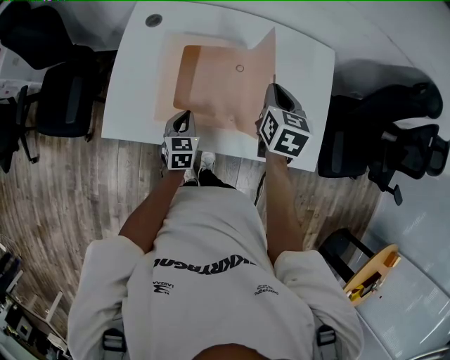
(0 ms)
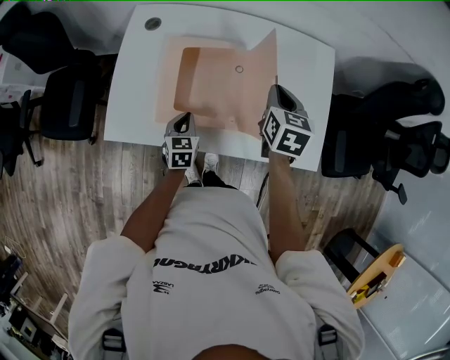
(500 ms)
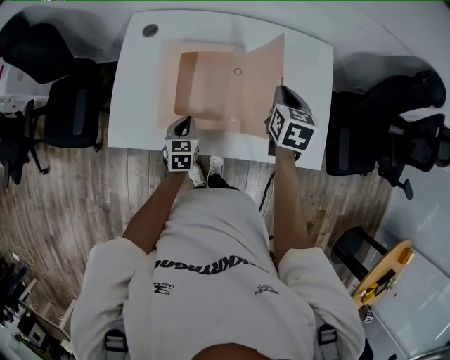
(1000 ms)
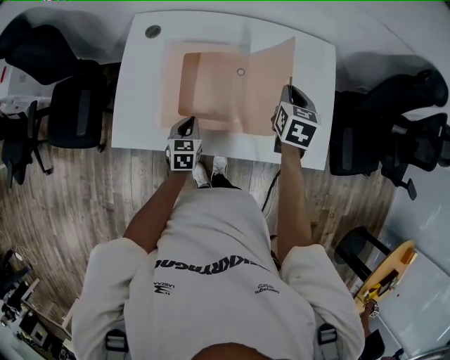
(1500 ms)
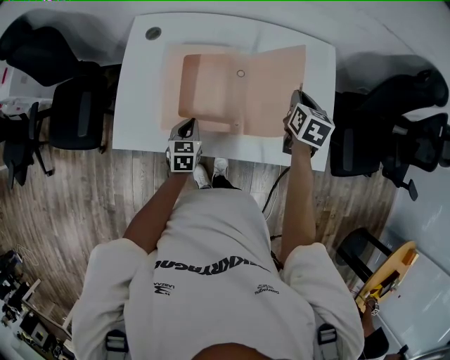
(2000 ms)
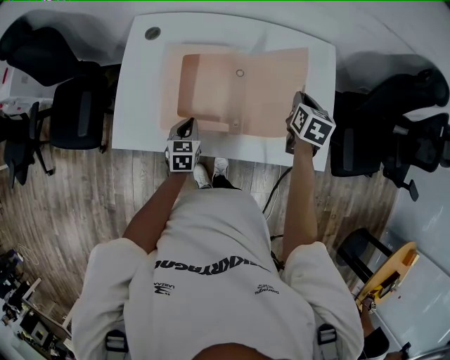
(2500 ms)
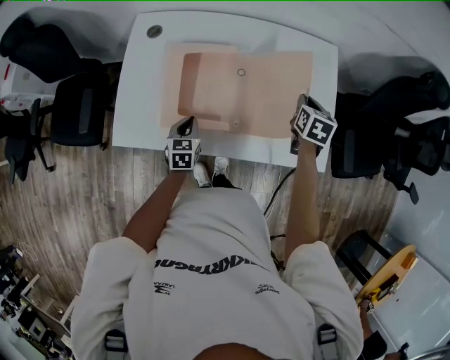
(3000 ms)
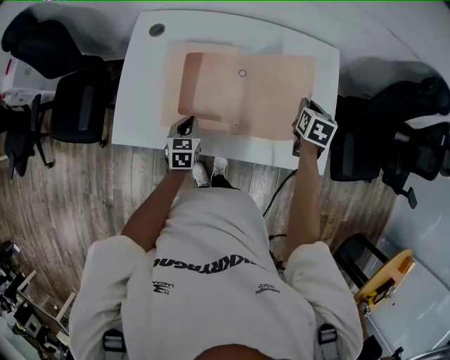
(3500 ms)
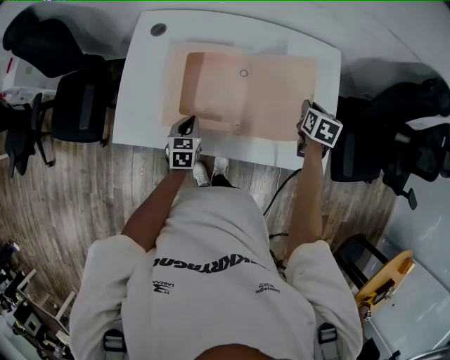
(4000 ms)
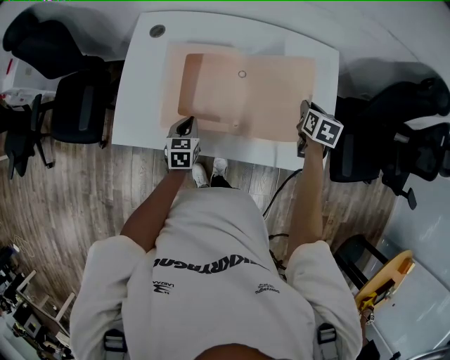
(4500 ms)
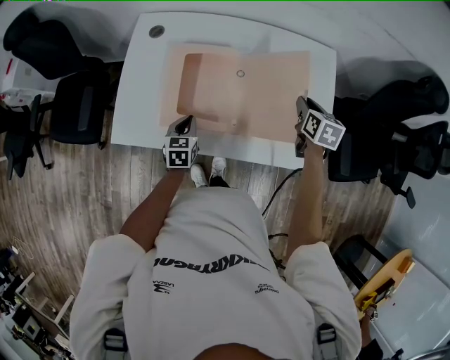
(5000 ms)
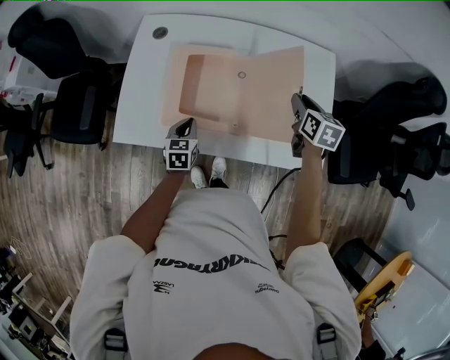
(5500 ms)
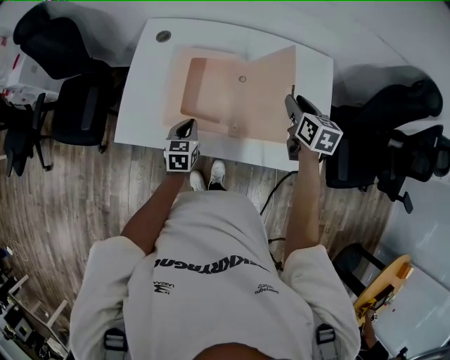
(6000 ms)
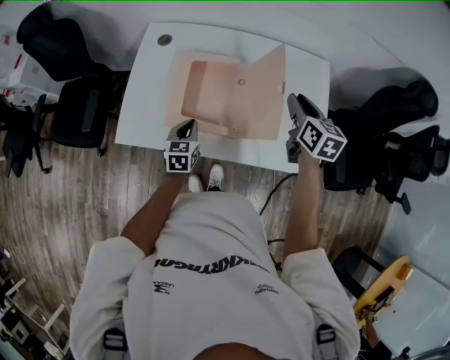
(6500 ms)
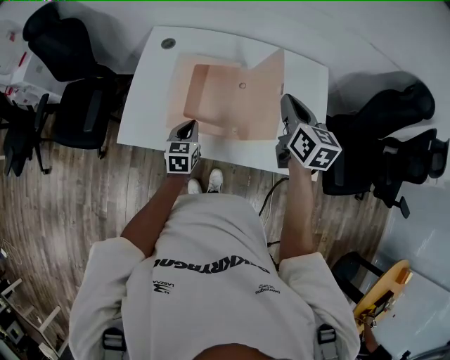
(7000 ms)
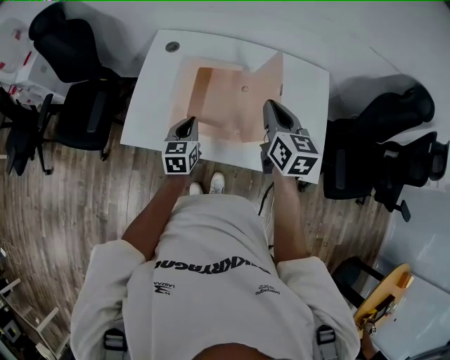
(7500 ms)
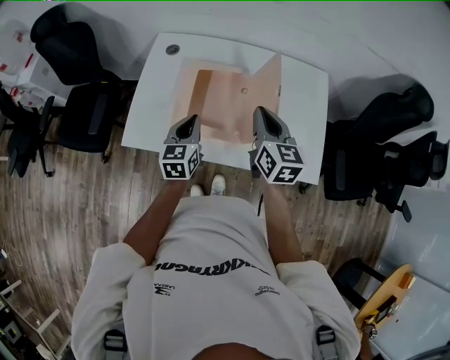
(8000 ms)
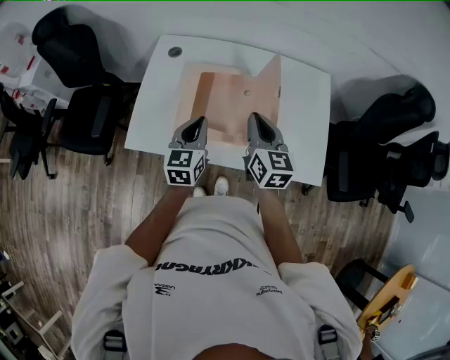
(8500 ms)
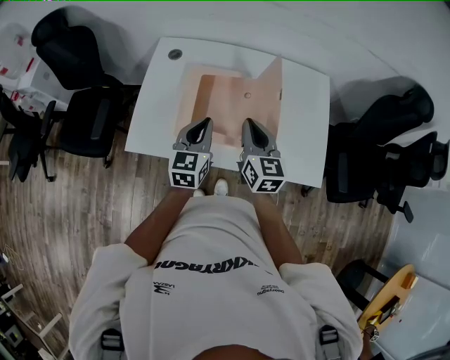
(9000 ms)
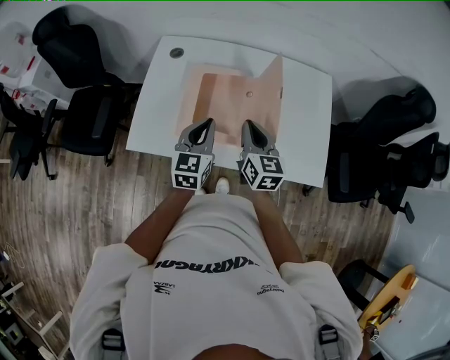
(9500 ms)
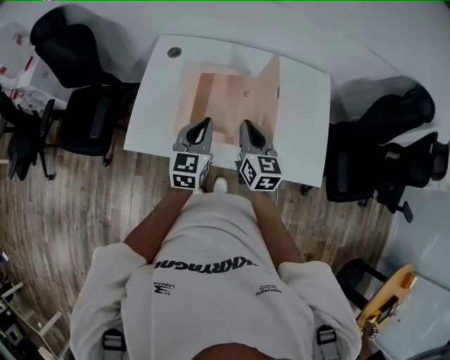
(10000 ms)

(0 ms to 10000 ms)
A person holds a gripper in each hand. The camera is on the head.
0 ms - 2000 ms: The right gripper is displaced to the right by roughly 10 cm.
2000 ms - 4000 ms: The right gripper moves to the right and downward, about 10 cm.
4000 ms - 6000 ms: The right gripper is displaced upward and to the left by approximately 10 cm, and rotates about 20 degrees.
6000 ms - 8000 ms: The left gripper heads upward, covering about 15 cm. Meanwhile the right gripper moves to the left, upward and backward, approximately 15 cm, and closes.
8000 ms - 10000 ms: The right gripper travels downward by approximately 5 cm.

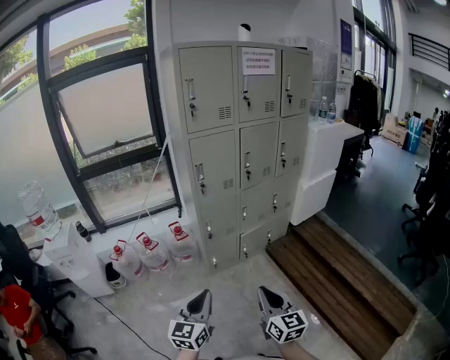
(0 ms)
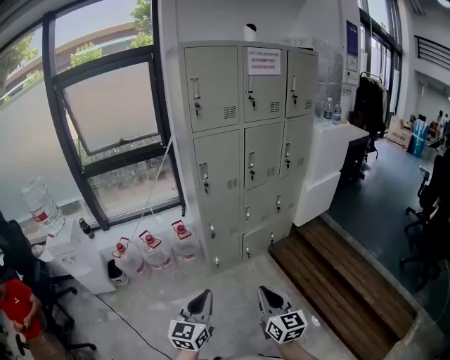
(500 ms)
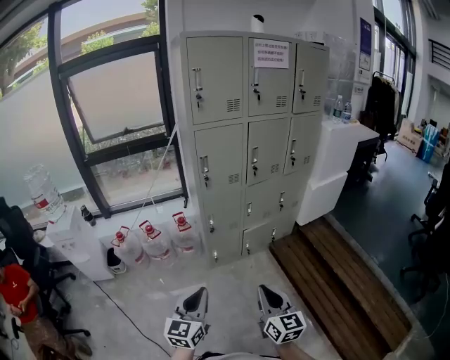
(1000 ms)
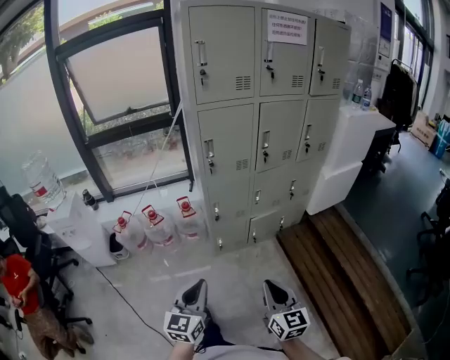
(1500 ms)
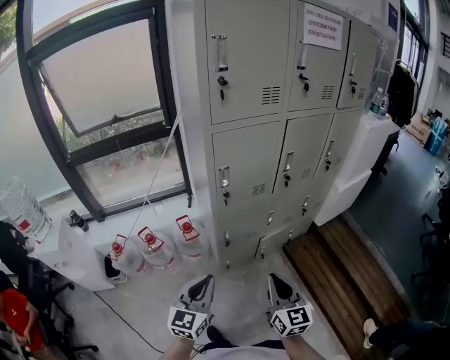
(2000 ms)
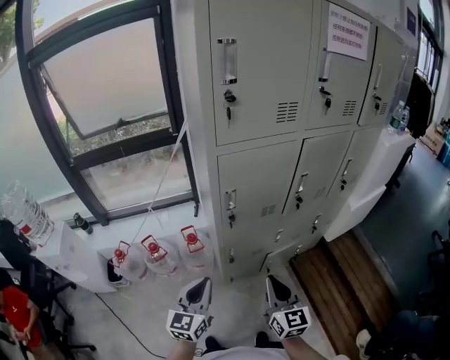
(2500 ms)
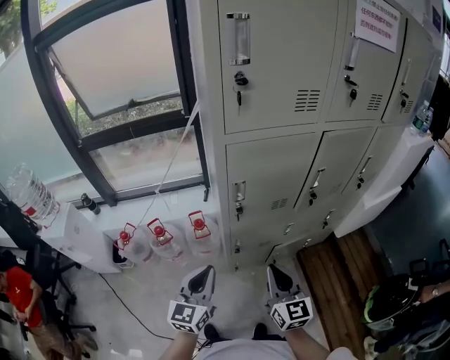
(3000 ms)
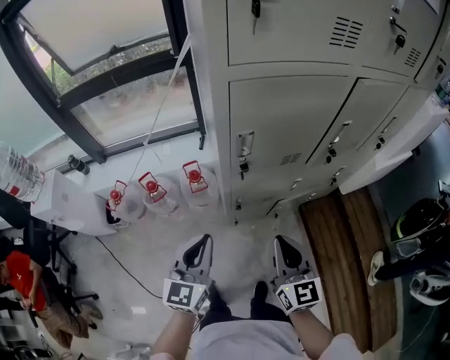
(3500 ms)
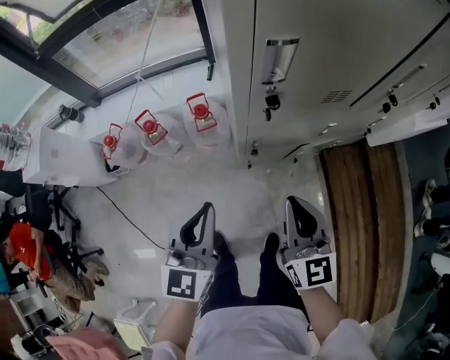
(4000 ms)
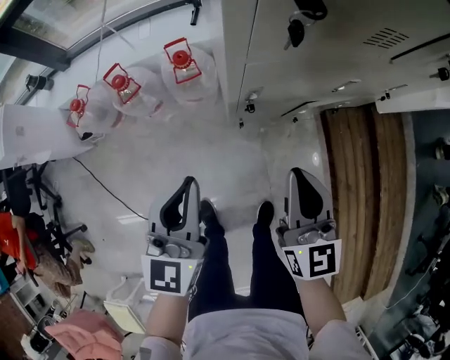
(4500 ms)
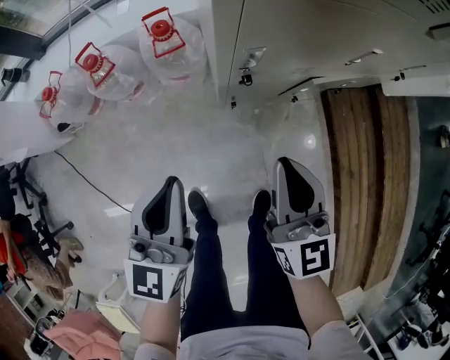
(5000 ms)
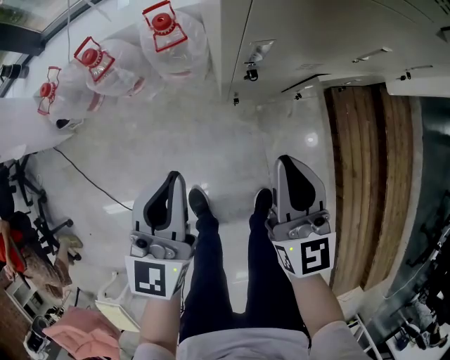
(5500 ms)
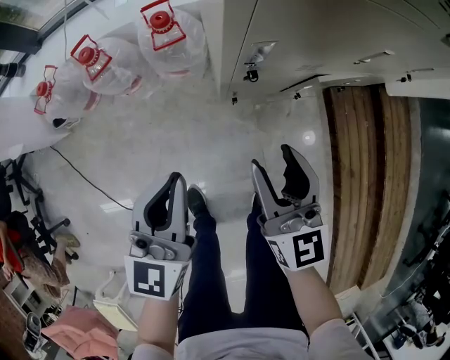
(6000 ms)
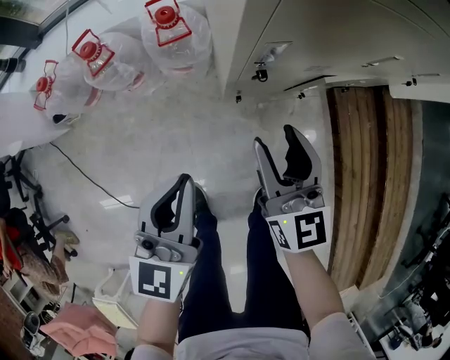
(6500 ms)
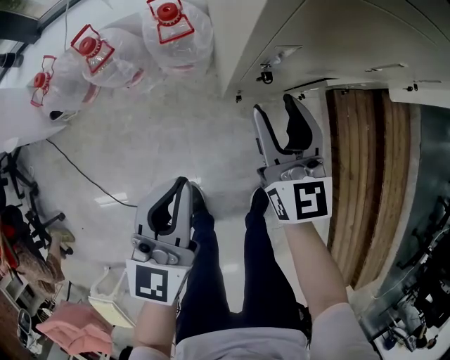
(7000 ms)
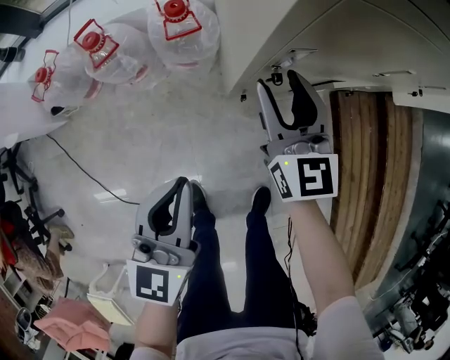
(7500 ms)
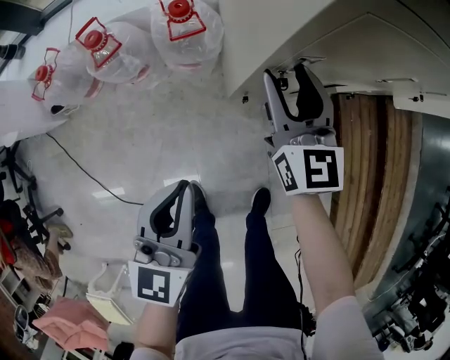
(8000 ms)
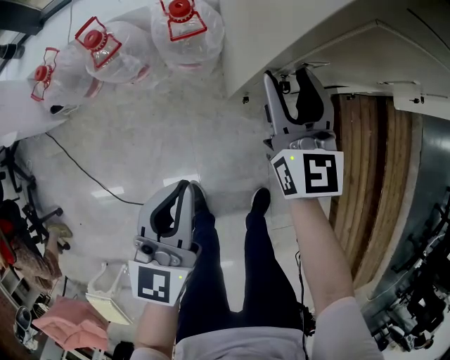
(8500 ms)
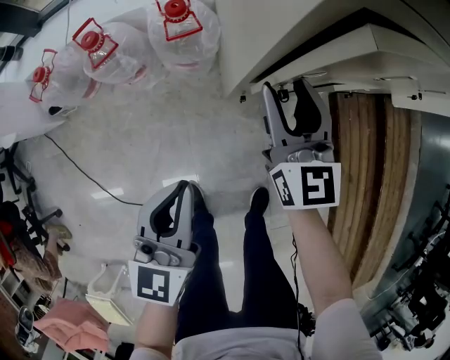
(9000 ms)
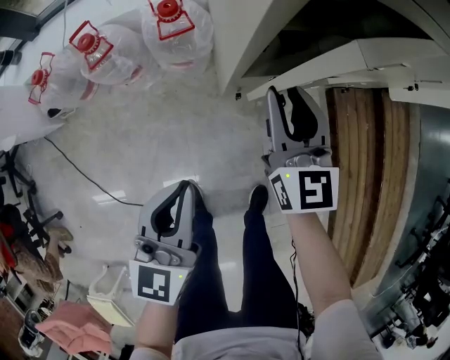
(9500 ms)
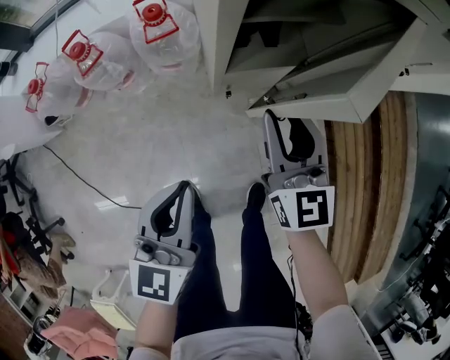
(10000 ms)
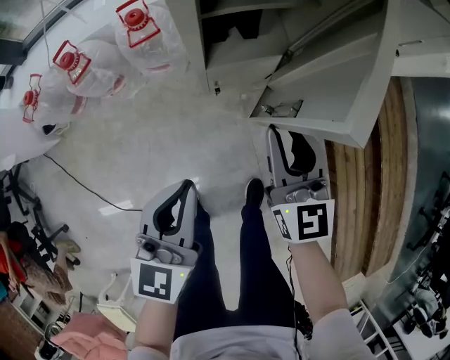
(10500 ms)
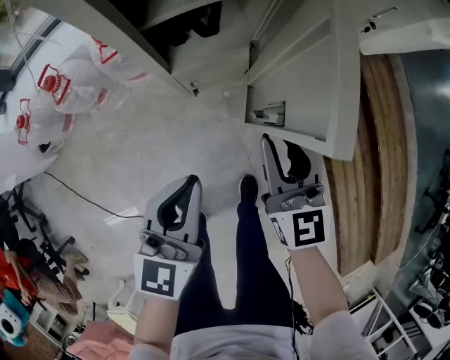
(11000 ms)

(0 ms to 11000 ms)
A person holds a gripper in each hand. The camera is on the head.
0 ms - 2000 ms: Both grippers move forward, approximately 30 cm.
2000 ms - 3500 ms: Both grippers travel together forward, about 15 cm.
3500 ms - 5500 ms: The grippers both shift downward by roughly 30 cm.
5500 ms - 7500 ms: The right gripper shifts some 15 cm forward, and opens.
7500 ms - 9000 ms: There are only small adjustments of the grippers.
9000 ms - 11000 ms: The left gripper shifts approximately 20 cm to the right. The right gripper heads to the right and backward, covering about 25 cm.

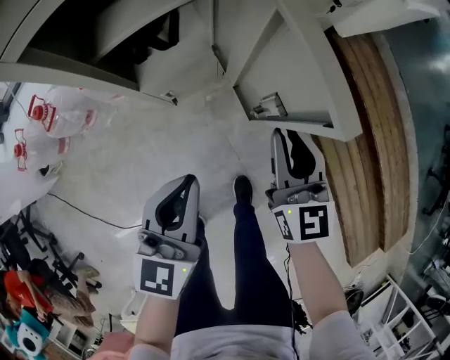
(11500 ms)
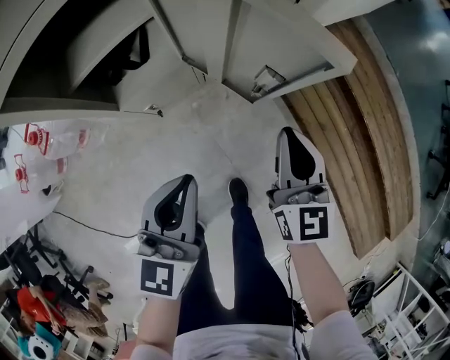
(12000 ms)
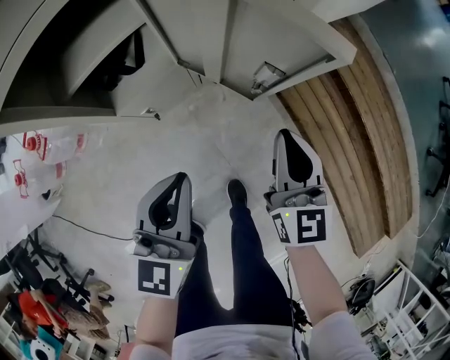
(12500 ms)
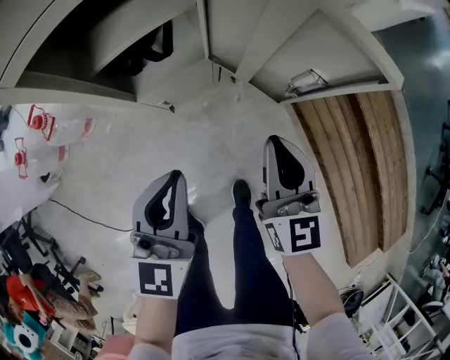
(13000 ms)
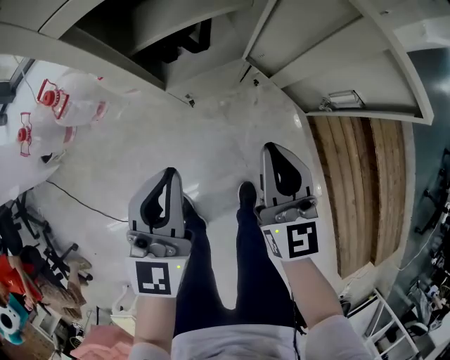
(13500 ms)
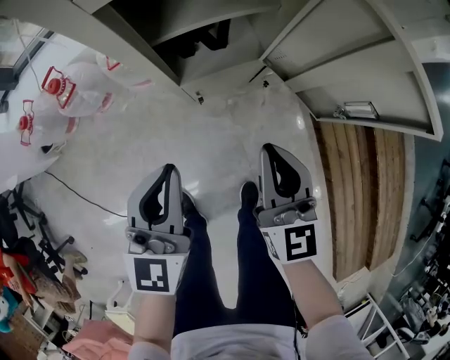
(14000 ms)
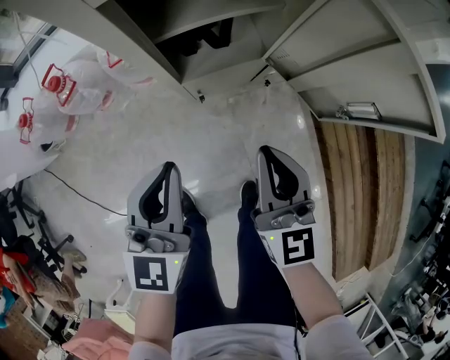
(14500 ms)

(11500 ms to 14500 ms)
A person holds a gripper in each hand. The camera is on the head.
11500 ms - 13000 ms: The right gripper travels to the right and back again, roughly 10 cm each way.
13000 ms - 14500 ms: The grippers both shift to the left by about 15 cm.

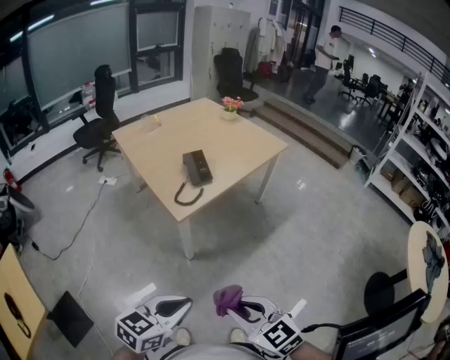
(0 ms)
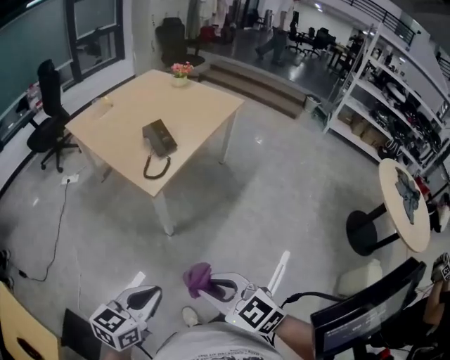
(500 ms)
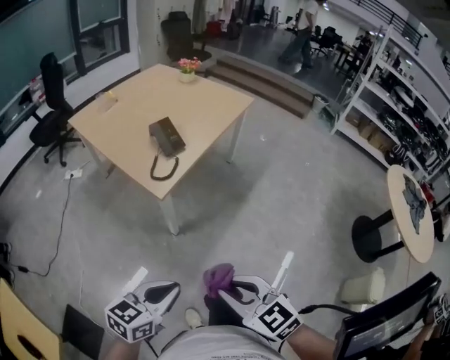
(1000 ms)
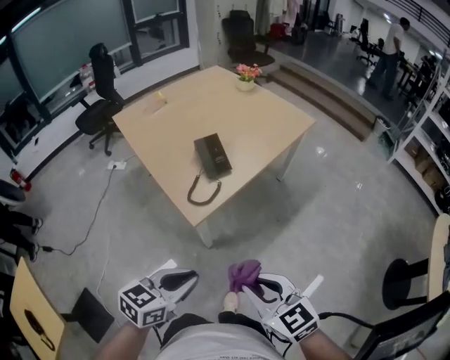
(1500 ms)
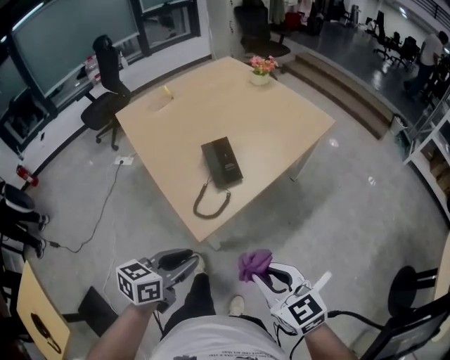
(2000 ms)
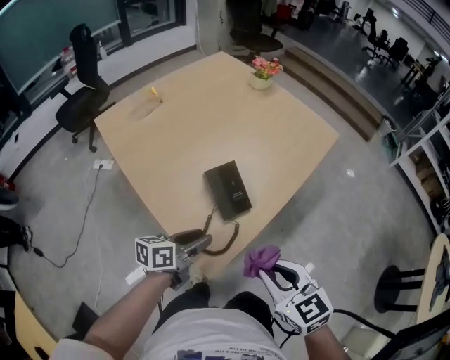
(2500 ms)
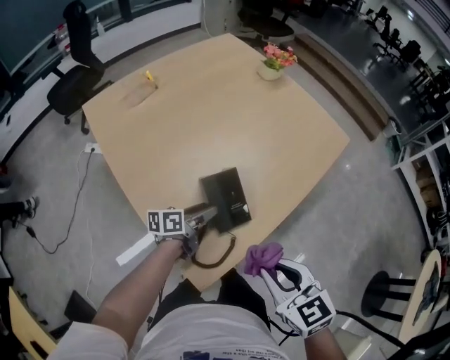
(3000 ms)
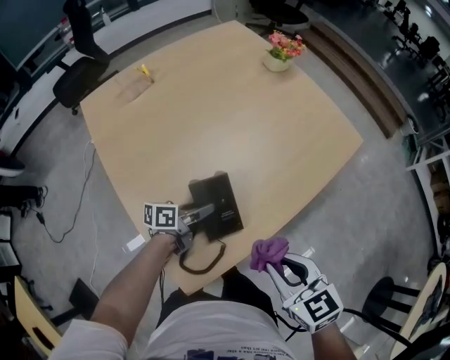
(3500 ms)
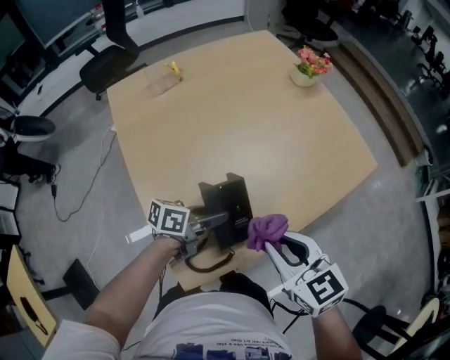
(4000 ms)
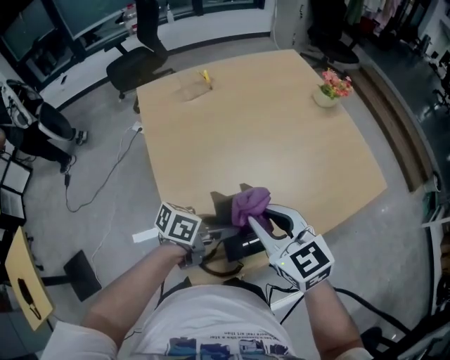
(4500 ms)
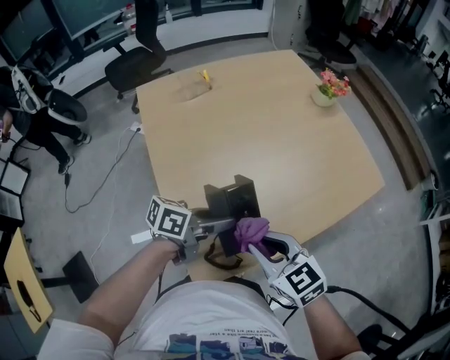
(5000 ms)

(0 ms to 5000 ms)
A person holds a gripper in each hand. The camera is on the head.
0 ms - 2500 ms: Both grippers move forward, roughly 40 cm. The left gripper swivels some 30 degrees, and opens.
2500 ms - 5000 ms: The left gripper goes roughly 10 cm forward; the right gripper goes about 15 cm forward and to the left, and rotates about 30 degrees.
